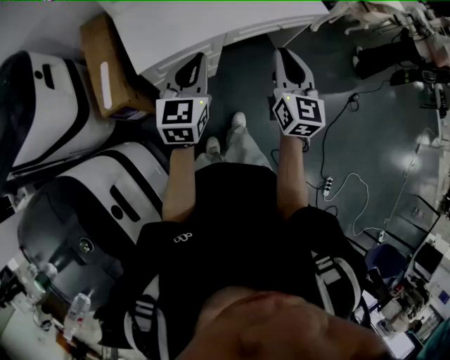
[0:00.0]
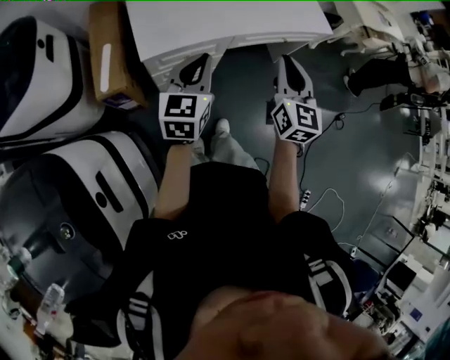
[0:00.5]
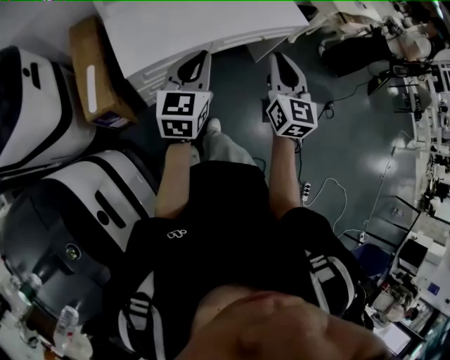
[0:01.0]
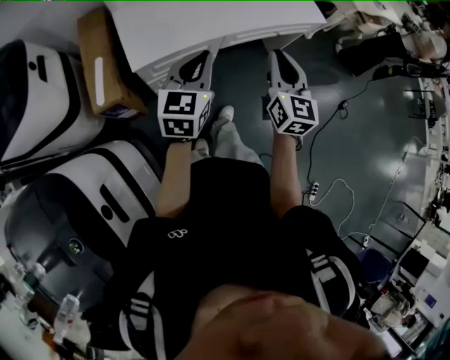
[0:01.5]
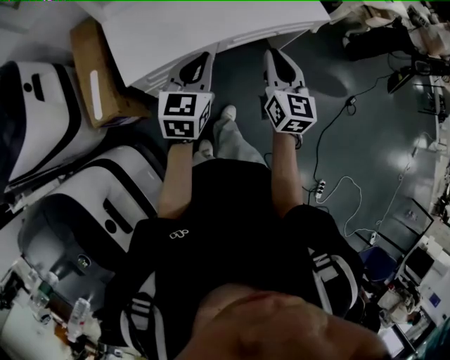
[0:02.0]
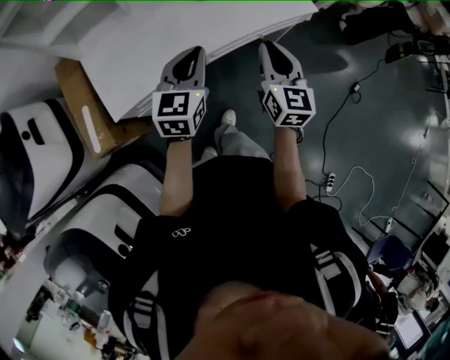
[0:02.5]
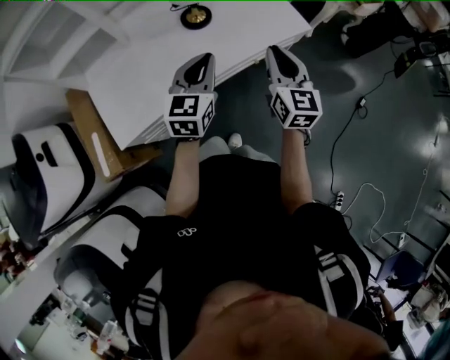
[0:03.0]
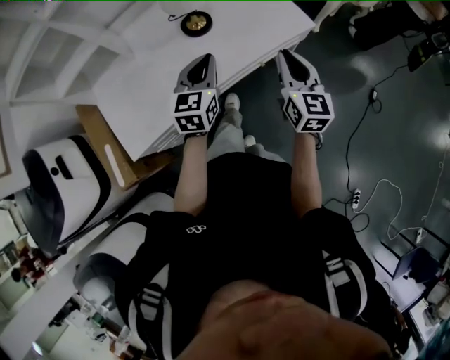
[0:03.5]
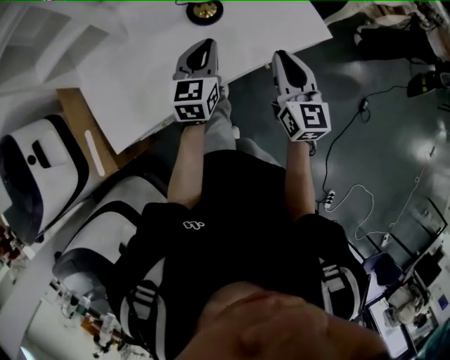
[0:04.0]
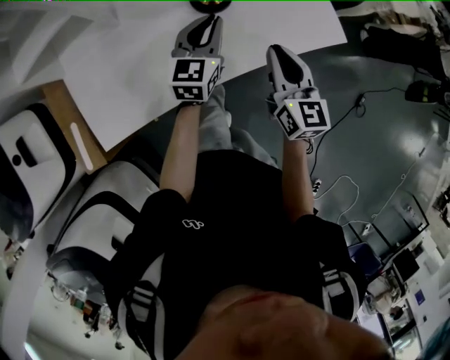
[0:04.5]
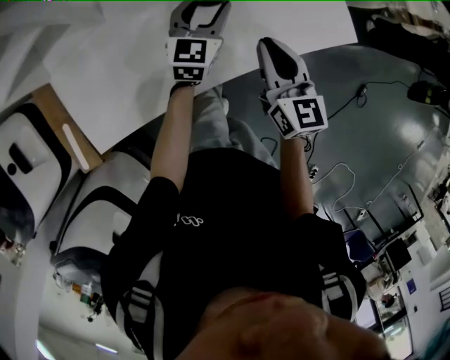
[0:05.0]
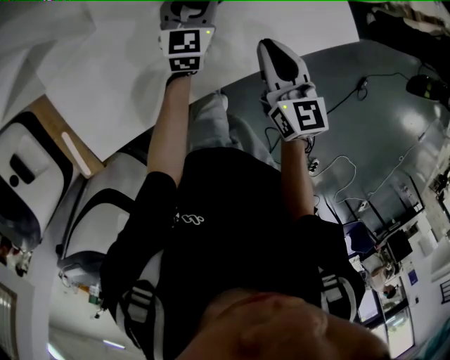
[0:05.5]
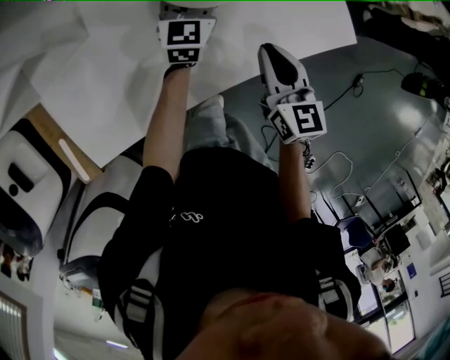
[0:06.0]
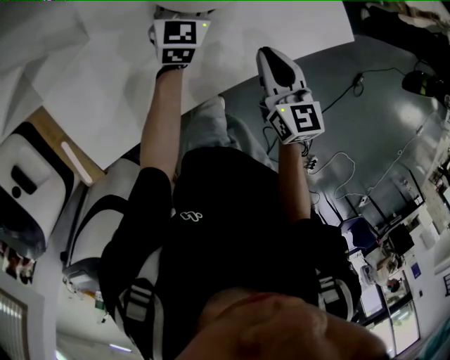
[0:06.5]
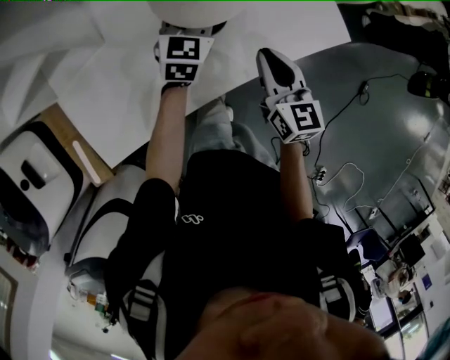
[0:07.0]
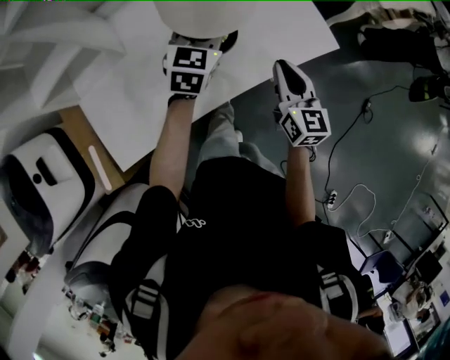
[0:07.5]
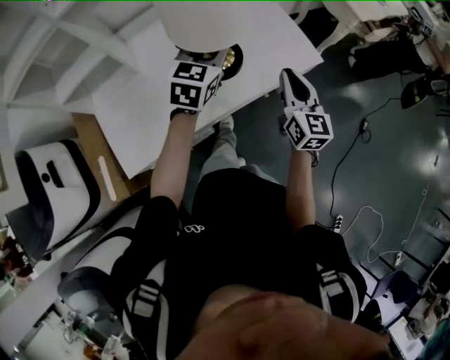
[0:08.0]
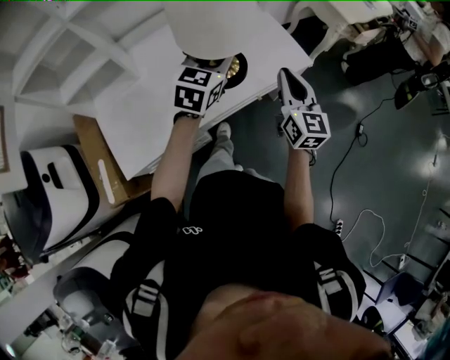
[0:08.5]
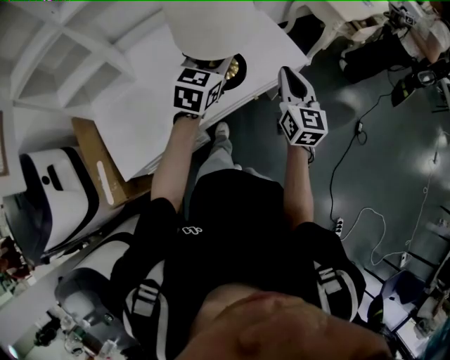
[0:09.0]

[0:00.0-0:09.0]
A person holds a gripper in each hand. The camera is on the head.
0:00.0 to 0:02.0: Both grippers travel together forward, approximately 5 cm.
0:02.0 to 0:04.5: The grippers both shift forward by some 25 cm.
0:04.5 to 0:07.0: The left gripper travels forward by about 10 cm, and opens its fingers, while the right gripper moves approximately 5 cm.
0:07.0 to 0:09.0: The right gripper moves to the right and upward, roughly 15 cm, and changes its angle by about 20 degrees, while the left gripper travels upward, backward and to the right by roughly 20 cm.

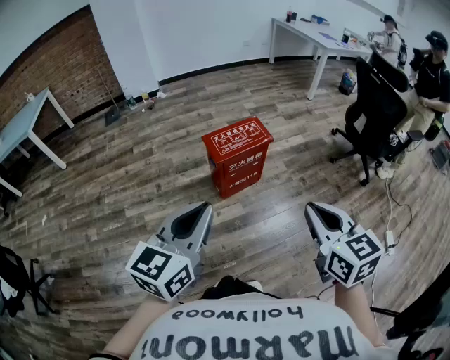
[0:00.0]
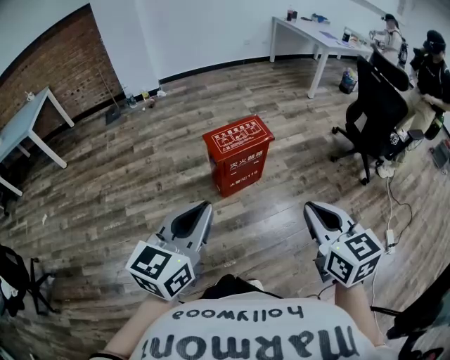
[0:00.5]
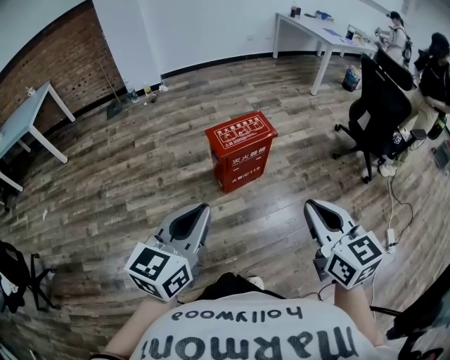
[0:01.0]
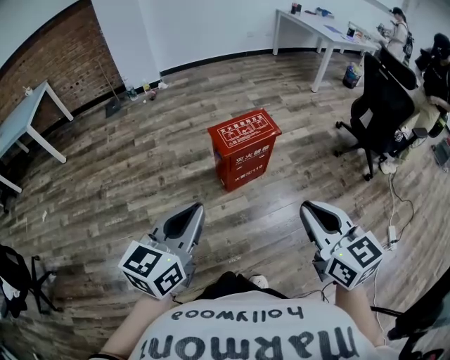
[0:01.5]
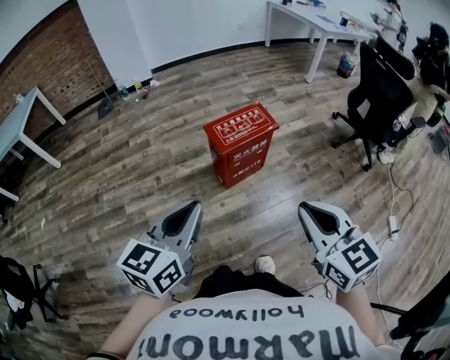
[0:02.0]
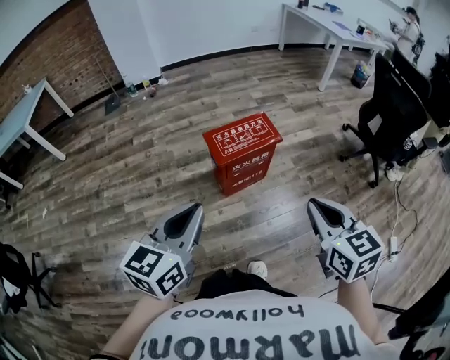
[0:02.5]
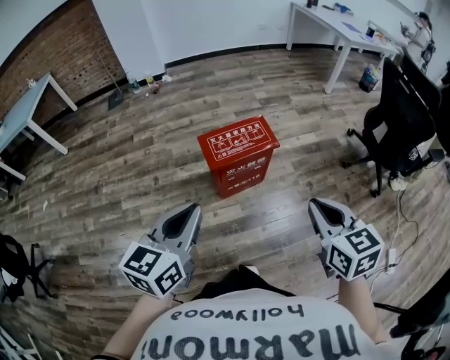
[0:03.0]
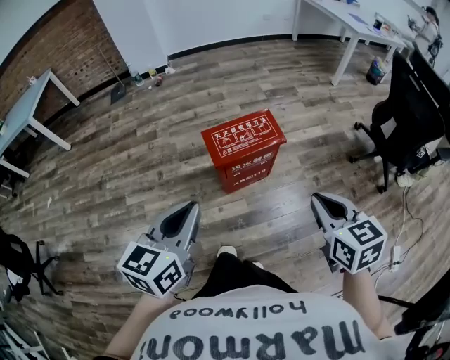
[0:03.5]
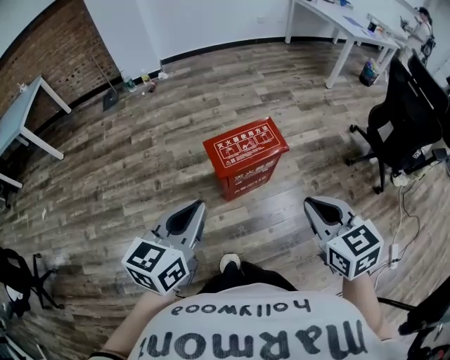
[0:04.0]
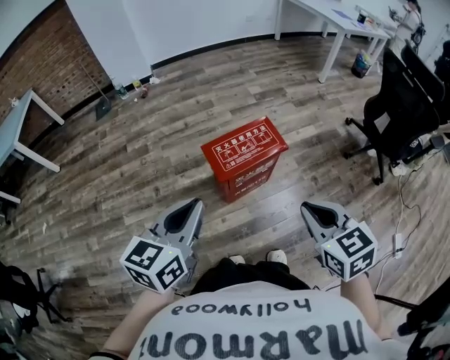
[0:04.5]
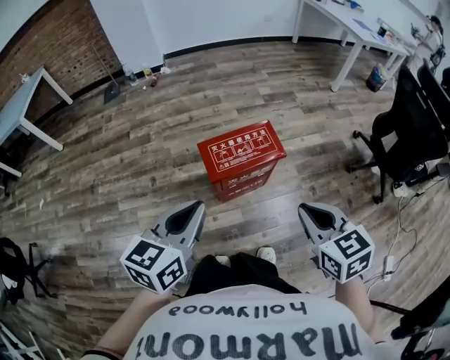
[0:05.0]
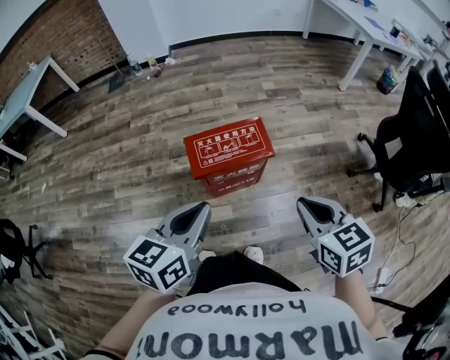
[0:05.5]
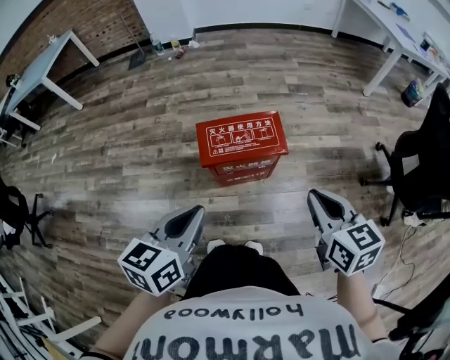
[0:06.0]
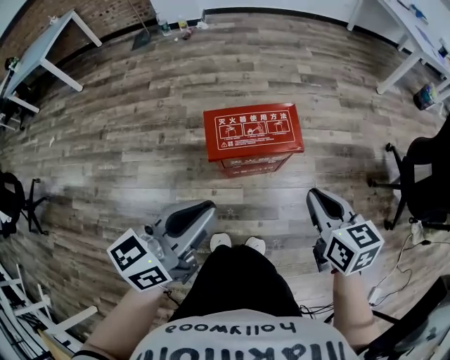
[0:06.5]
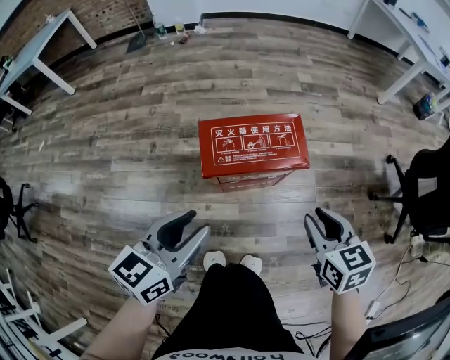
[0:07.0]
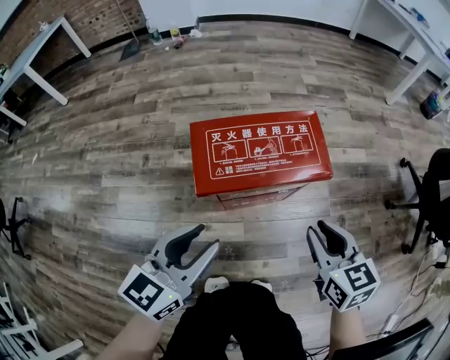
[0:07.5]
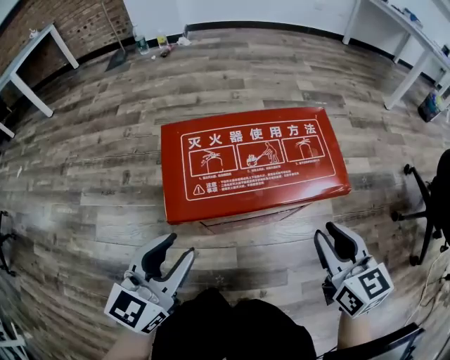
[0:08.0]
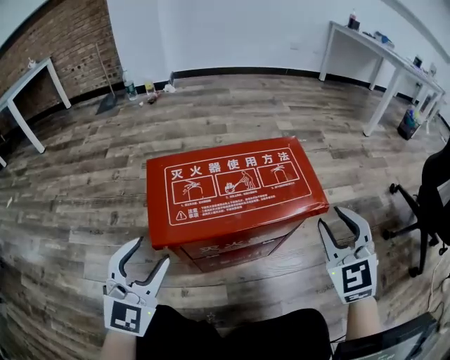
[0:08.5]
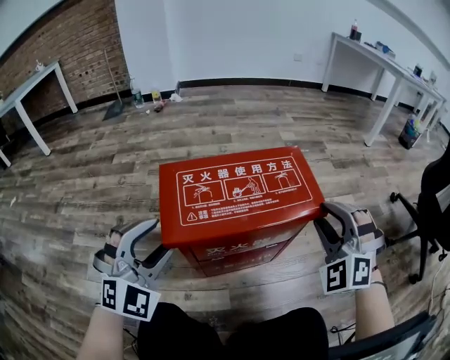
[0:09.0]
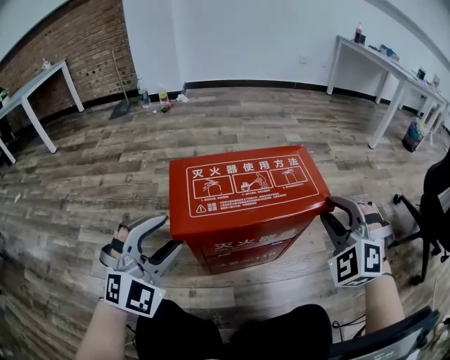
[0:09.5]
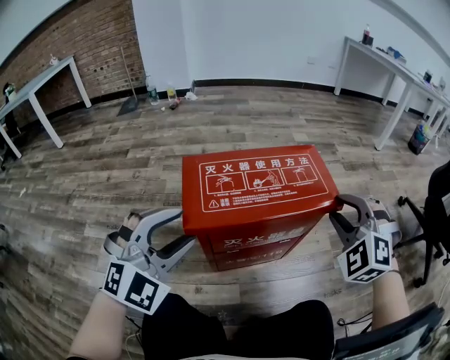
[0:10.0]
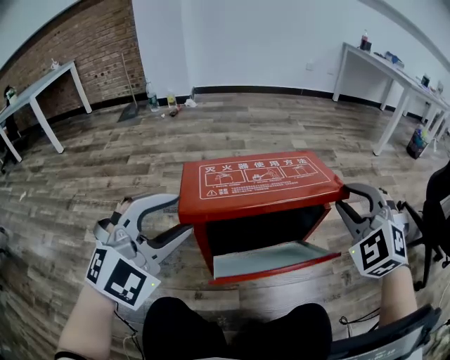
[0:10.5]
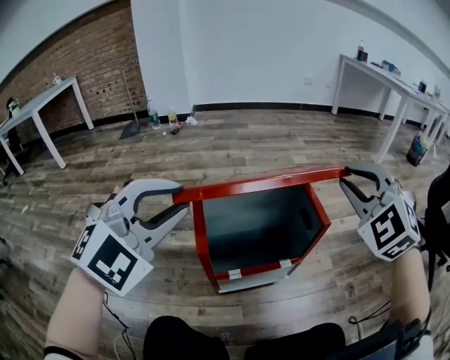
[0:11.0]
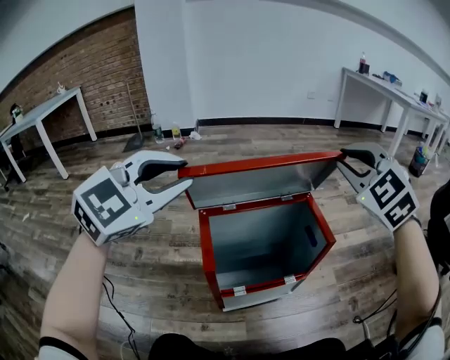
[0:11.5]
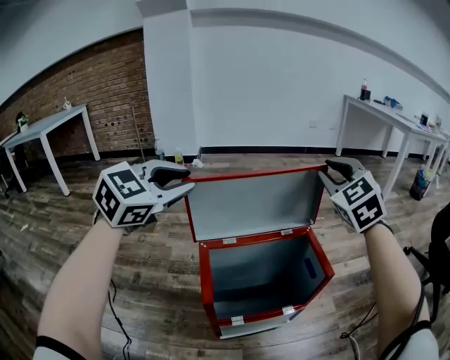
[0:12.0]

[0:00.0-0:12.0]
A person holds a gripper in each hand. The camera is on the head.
0:00.0 to 0:02.0: Both grippers move to the left, roughly 5 cm.
0:02.0 to 0:04.0: The two grippers go about 20 cm forward.
0:04.0 to 0:06.0: The right gripper is displaced to the right, forward and downward by roughly 20 cm. The left gripper heads to the right and downward, covering some 15 cm.
0:06.0 to 0:08.0: The left gripper heads downward and forward, covering approximately 40 cm, turns by some 20 degrees, and opens its fingers. Meanwhile the right gripper moves downward, roughly 35 cm, and opens its fingers.
0:08.0 to 0:10.0: The right gripper moves forward, some 5 cm, and rolls counterclockwise, seen from behind, by approximately 70 degrees. The left gripper rolls clockwise, seen from behind, by about 60 degrees.
0:10.0 to 0:12.0: The left gripper moves forward, upward and to the left, approximately 25 cm, changes its angle by some 20 degrees, and closes its fingers, while the right gripper heads upward, forward and to the left, covering approximately 30 cm, and changes its angle by approximately 30 degrees.

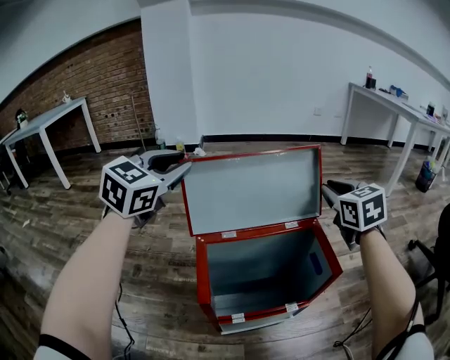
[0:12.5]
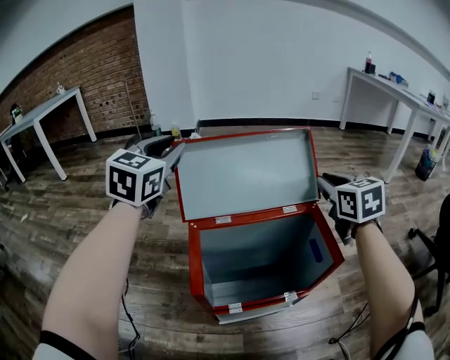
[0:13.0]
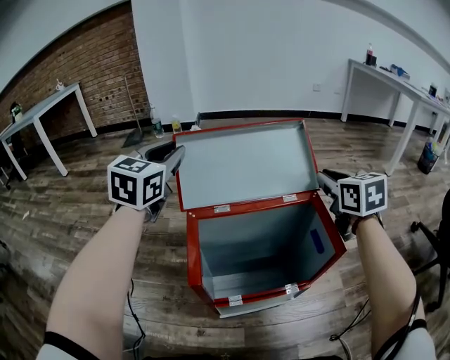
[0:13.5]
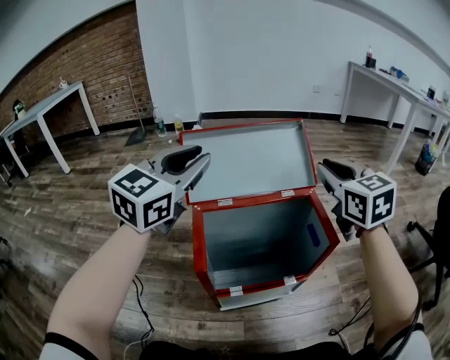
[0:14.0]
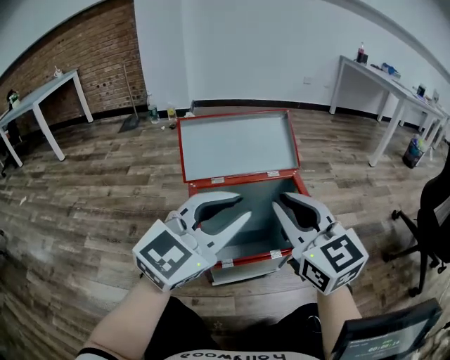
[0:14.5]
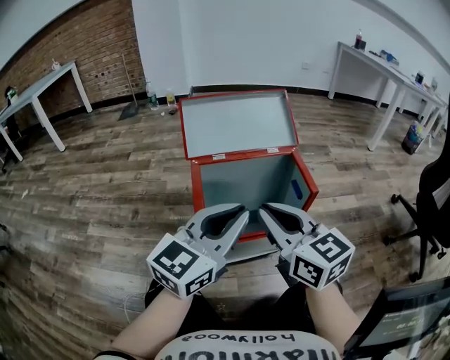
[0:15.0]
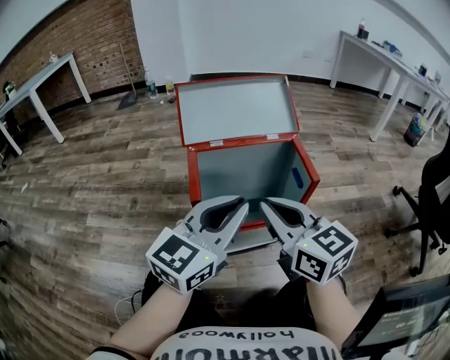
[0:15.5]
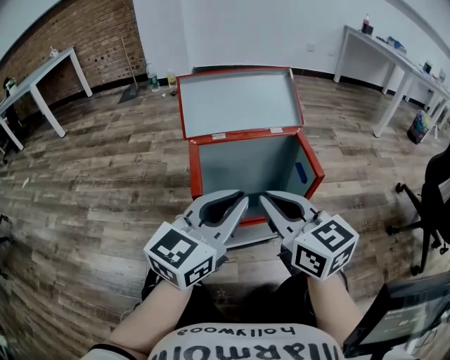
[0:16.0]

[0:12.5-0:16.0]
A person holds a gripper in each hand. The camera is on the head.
0:12.5 to 0:14.5: The left gripper is displaced backward and to the right by approximately 30 cm, and swivels some 20 degrees. Meanwhile the right gripper goes roughly 25 cm backward and to the left, and turns by roughly 20 degrees.
0:14.5 to 0:16.0: The left gripper shifts some 10 cm downward, and changes its angle by some 20 degrees; the right gripper moves downward and backward, about 10 cm.

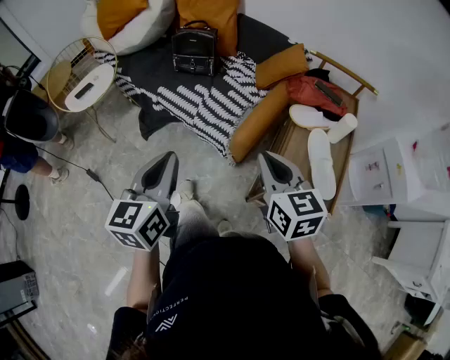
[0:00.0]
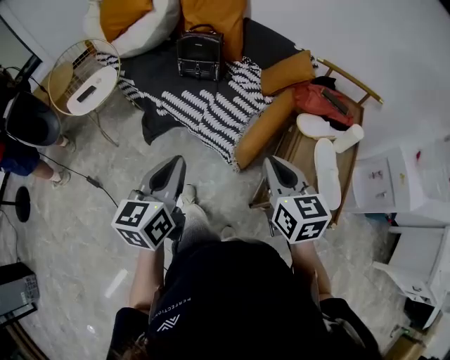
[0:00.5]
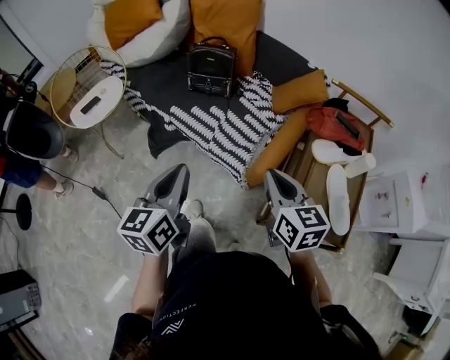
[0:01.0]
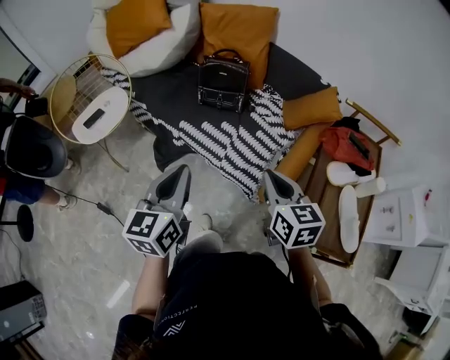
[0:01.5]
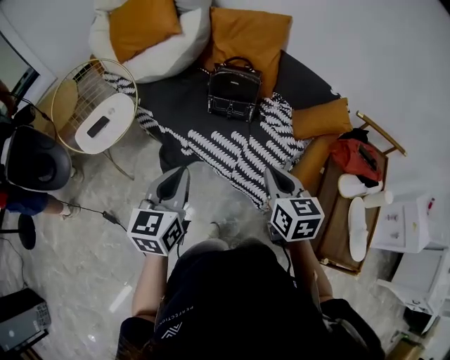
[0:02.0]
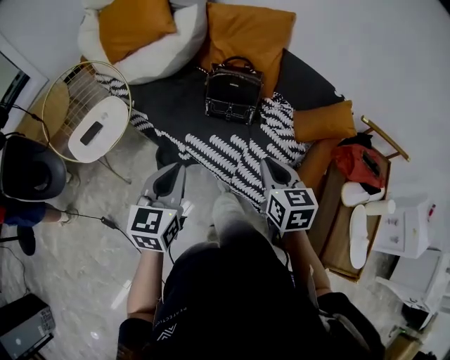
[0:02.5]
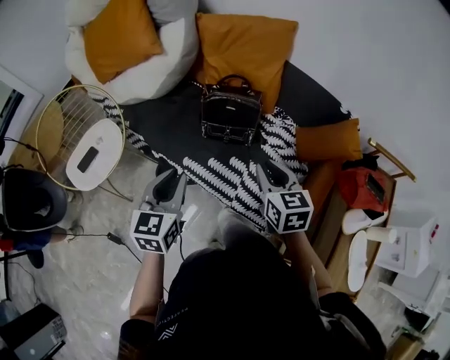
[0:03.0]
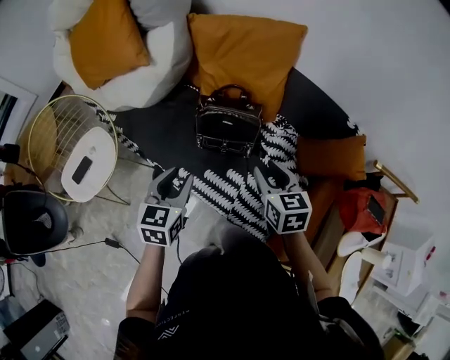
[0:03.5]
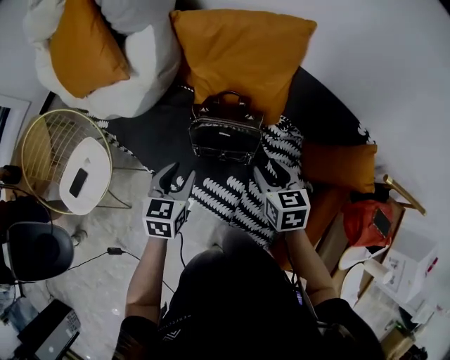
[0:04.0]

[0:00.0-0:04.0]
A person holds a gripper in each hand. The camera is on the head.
0:00.0 to 0:02.0: Both grippers move forward and to the left, some 30 cm.
0:02.0 to 0:04.0: The left gripper is displaced forward and downward by about 40 cm, swivels about 20 degrees, and opens its fingers, while the right gripper travels forward by approximately 35 cm, and opens up.
